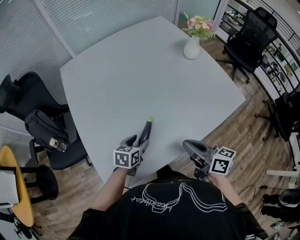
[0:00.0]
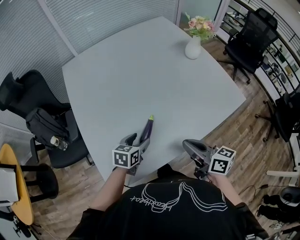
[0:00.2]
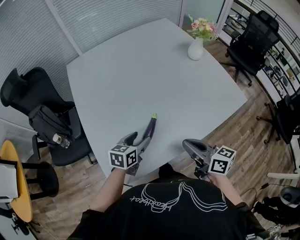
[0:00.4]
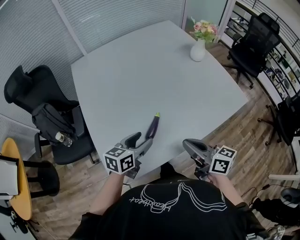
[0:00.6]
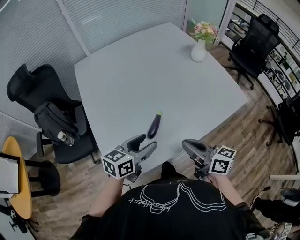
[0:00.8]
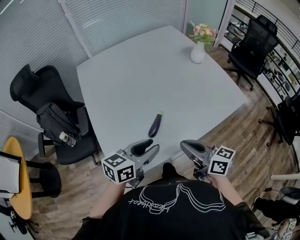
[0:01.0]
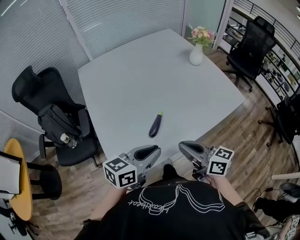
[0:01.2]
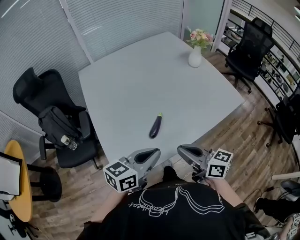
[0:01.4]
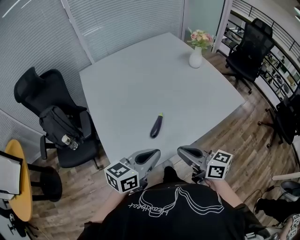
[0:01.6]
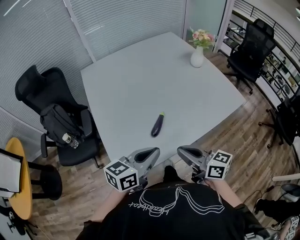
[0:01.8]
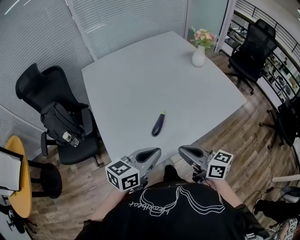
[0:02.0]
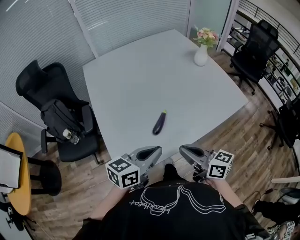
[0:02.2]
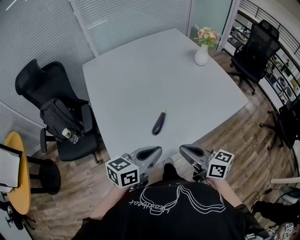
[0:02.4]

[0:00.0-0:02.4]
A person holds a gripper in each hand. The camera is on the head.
0:00.0 to 0:01.2: The right gripper goes approximately 10 cm backward, to the left and upward; the left gripper moves upward and backward, about 25 cm, swivels some 30 degrees, and closes up.
0:01.2 to 0:02.4: The grippers make only small movements.

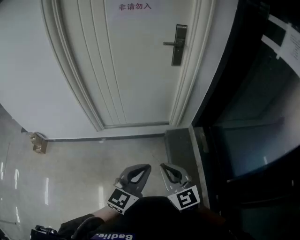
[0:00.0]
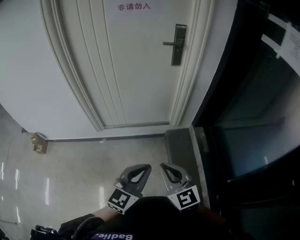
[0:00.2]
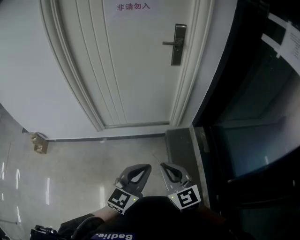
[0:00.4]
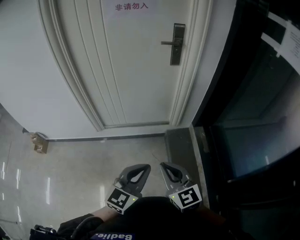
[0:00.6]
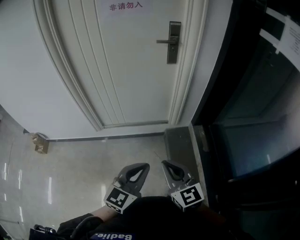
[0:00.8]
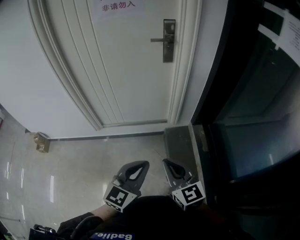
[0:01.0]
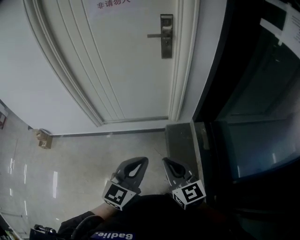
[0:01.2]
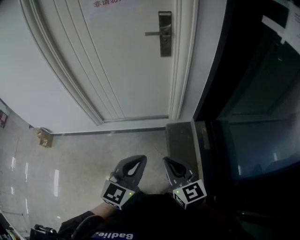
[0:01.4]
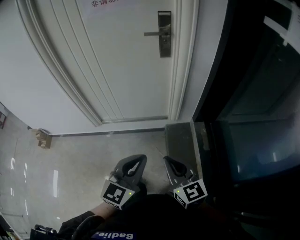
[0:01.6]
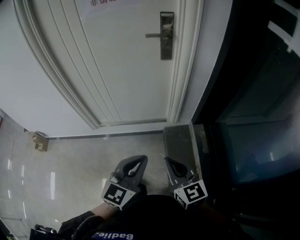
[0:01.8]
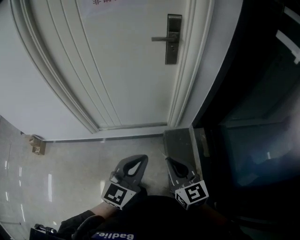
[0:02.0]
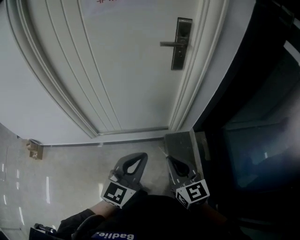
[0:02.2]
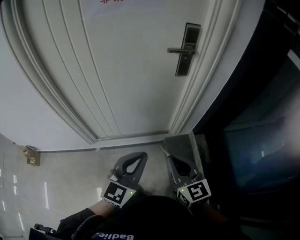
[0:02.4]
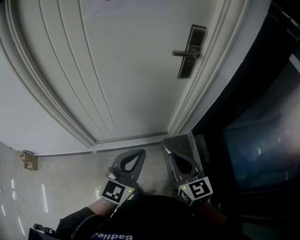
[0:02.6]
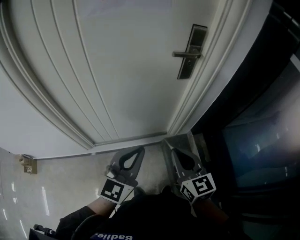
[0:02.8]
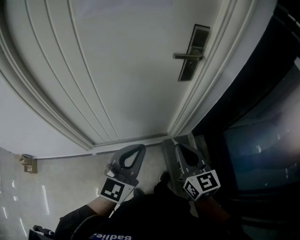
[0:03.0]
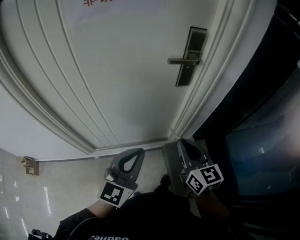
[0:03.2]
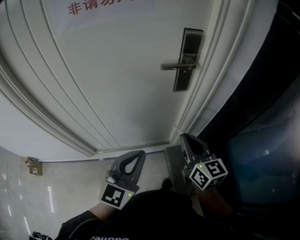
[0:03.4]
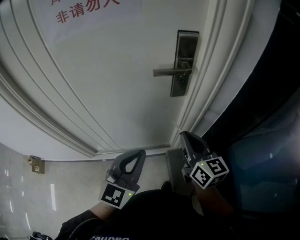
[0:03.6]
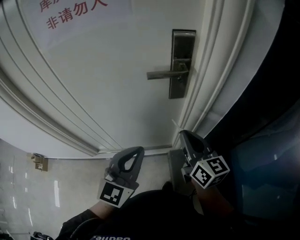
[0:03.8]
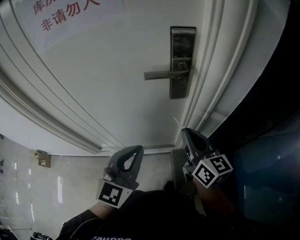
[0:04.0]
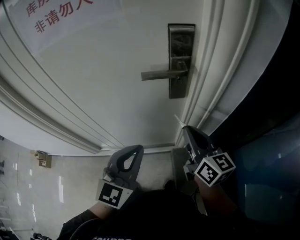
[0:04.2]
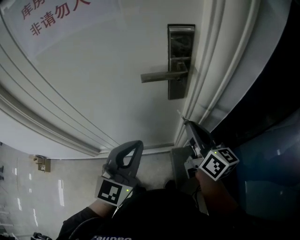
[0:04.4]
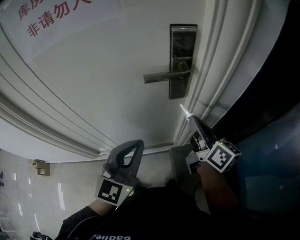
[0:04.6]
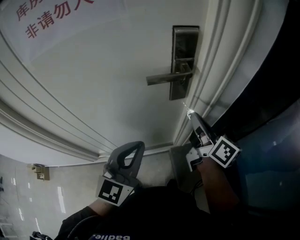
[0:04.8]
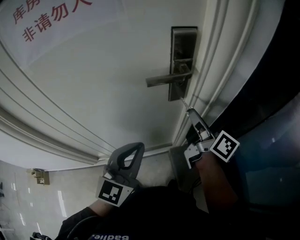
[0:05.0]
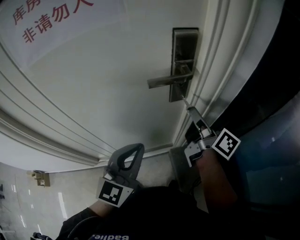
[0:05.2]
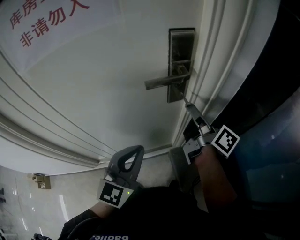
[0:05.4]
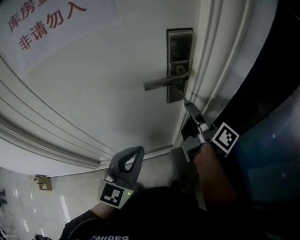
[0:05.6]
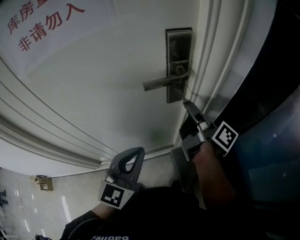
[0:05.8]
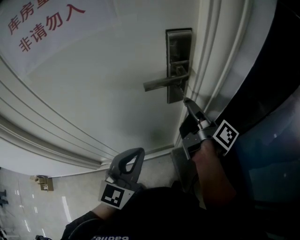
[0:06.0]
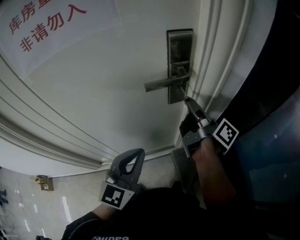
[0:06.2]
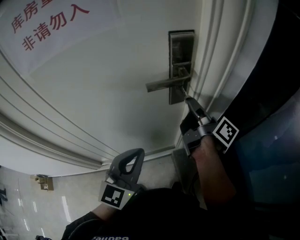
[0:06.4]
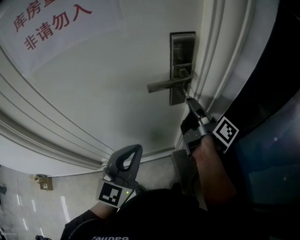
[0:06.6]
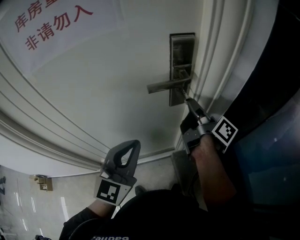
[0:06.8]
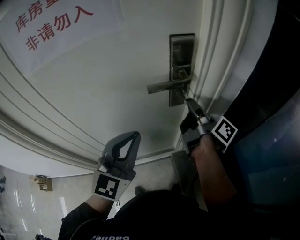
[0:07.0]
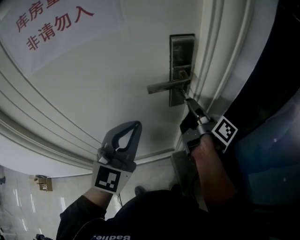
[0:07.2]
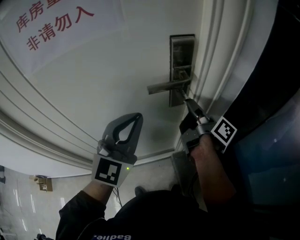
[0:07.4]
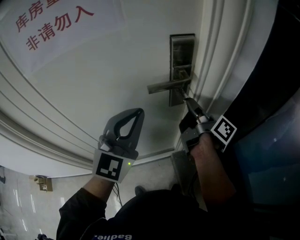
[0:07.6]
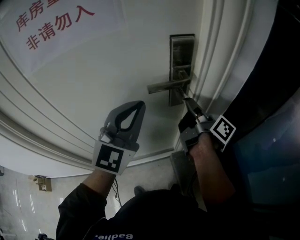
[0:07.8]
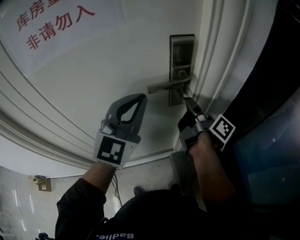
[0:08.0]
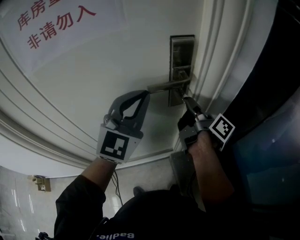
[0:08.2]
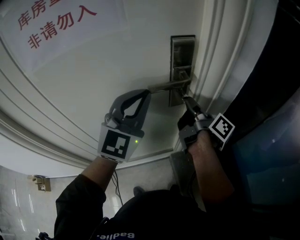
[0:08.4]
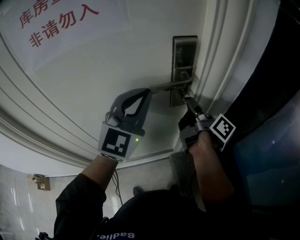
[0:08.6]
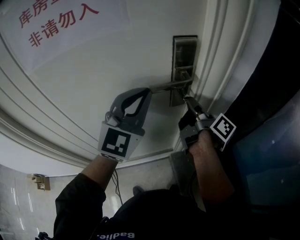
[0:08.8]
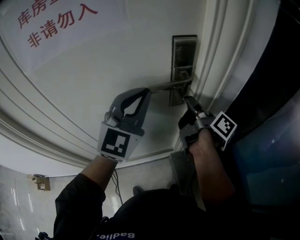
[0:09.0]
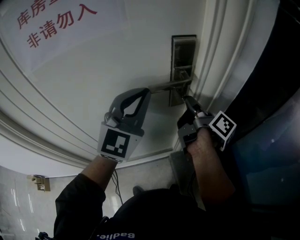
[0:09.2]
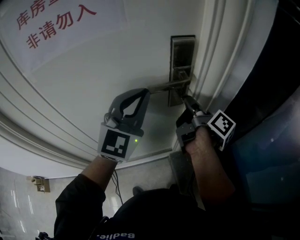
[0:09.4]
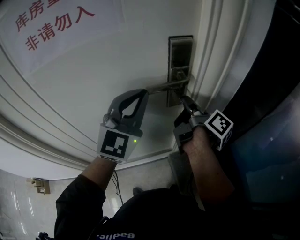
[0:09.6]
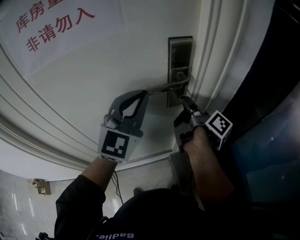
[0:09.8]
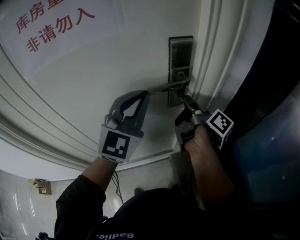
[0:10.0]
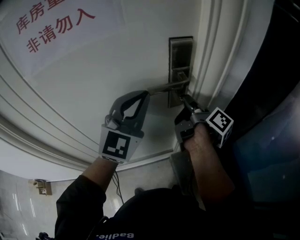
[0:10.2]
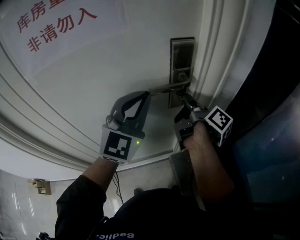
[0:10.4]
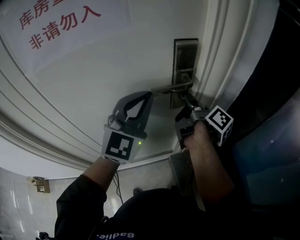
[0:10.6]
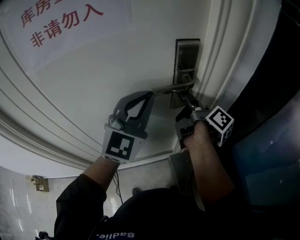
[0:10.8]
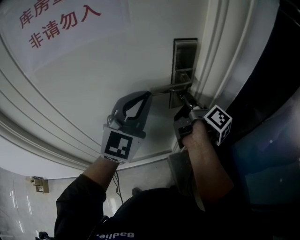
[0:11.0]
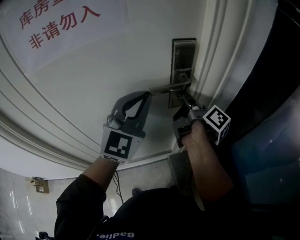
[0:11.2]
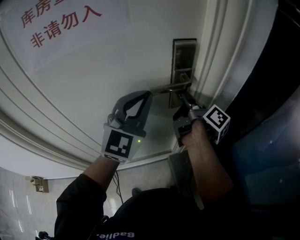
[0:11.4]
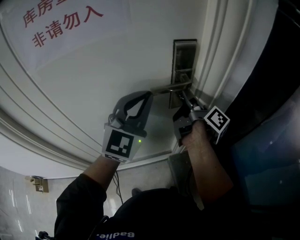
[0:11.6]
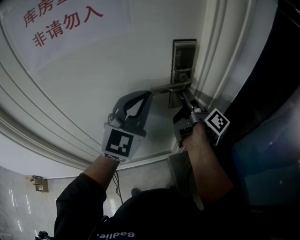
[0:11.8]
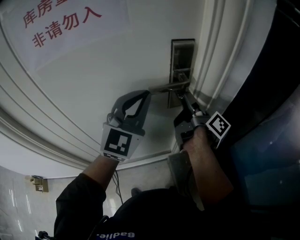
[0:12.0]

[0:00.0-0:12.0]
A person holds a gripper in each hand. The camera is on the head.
0:00.0 to 0:01.6: The grippers both shift to the right and forward by roughly 15 cm.
0:01.6 to 0:03.0: The grippers both shift forward and to the left by some 30 cm.
0:03.0 to 0:04.4: Both grippers move forward and to the right, some 20 cm. The right gripper rotates some 30 degrees.
0:04.4 to 0:06.0: The right gripper travels forward by about 5 cm, and rolls clockwise, seen from behind, by some 50 degrees.
0:06.0 to 0:07.6: The left gripper goes about 10 cm upward and forward.
0:07.6 to 0:09.0: The left gripper moves approximately 5 cm.
0:09.0 to 0:10.4: The grippers move only a little.
0:10.4 to 0:12.0: The right gripper opens its fingers.

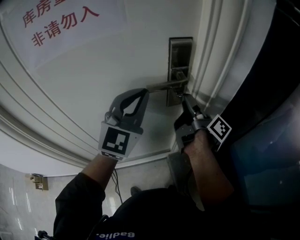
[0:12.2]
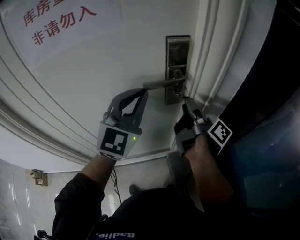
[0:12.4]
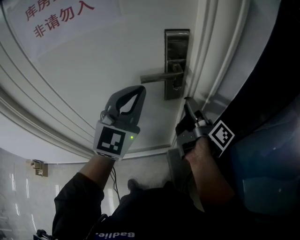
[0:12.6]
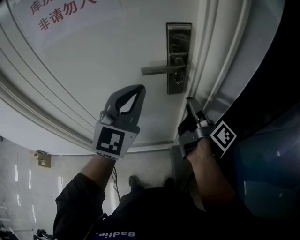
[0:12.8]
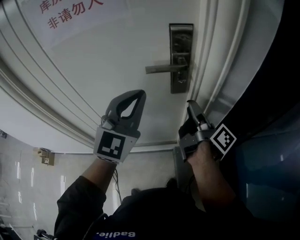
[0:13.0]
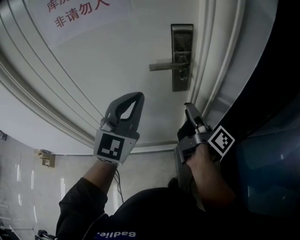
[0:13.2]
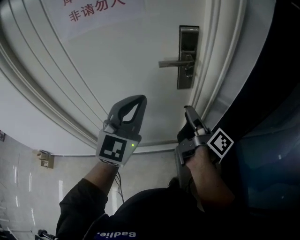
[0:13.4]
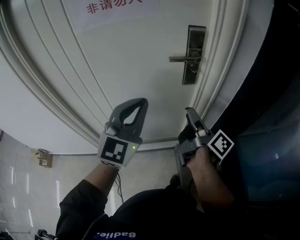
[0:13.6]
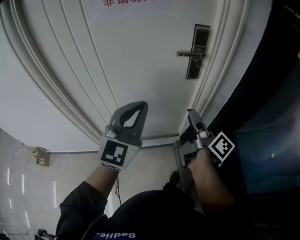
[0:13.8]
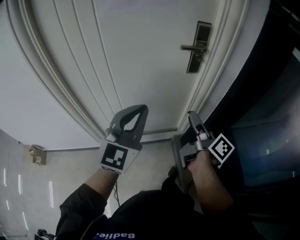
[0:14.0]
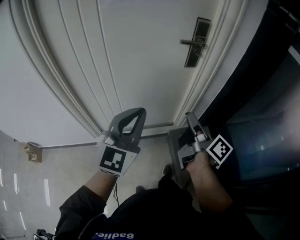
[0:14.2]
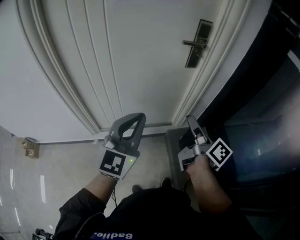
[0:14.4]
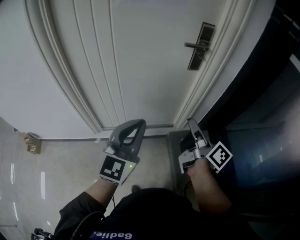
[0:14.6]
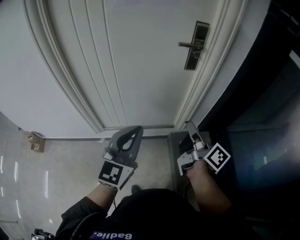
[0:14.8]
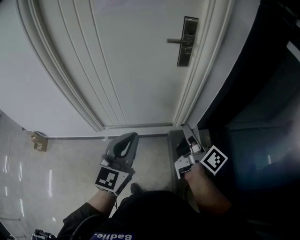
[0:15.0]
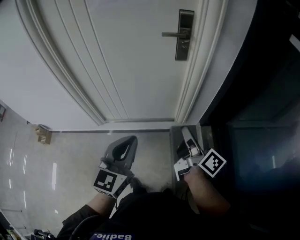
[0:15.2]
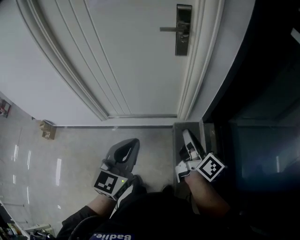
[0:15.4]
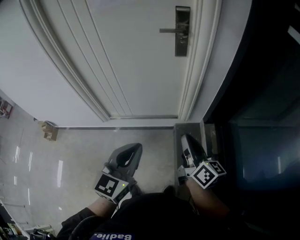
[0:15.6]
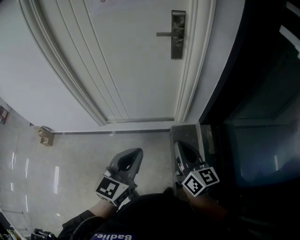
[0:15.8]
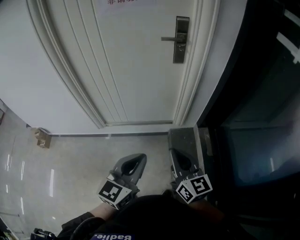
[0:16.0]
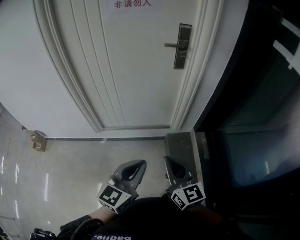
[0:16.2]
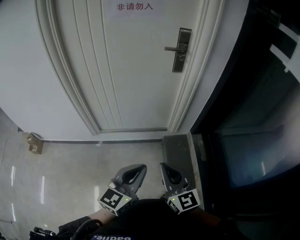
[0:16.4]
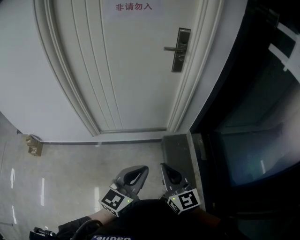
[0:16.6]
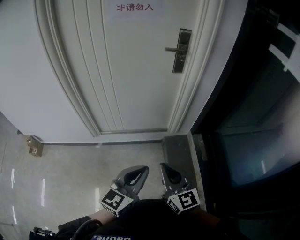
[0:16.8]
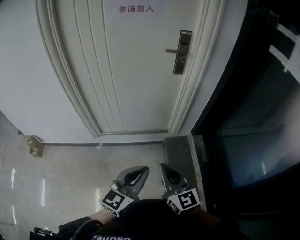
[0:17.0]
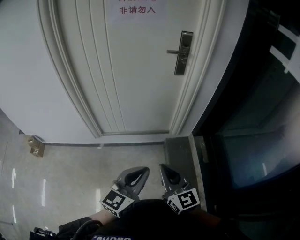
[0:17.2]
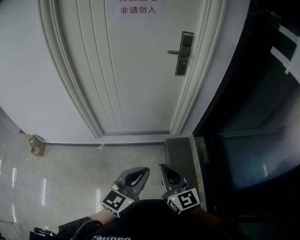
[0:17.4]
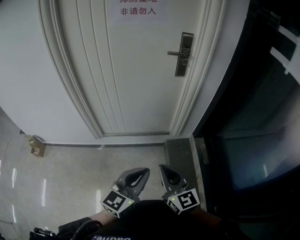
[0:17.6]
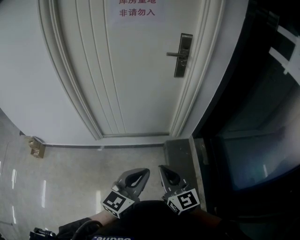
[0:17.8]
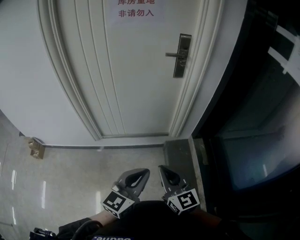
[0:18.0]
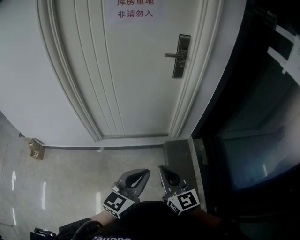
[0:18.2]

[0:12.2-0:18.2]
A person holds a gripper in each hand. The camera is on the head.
0:12.2 to 0:13.8: The grippers both shift backward by approximately 25 cm.
0:13.8 to 0:15.2: The left gripper travels backward, downward and to the right by roughly 20 cm, and rotates about 20 degrees. The right gripper travels backward and to the right by approximately 15 cm, and closes up.
0:15.2 to 0:16.6: The right gripper moves backward and to the left, about 20 cm, and rolls counterclockwise, seen from behind, by approximately 60 degrees. The left gripper moves backward, approximately 10 cm.
0:16.6 to 0:18.2: The grippers move only a little.

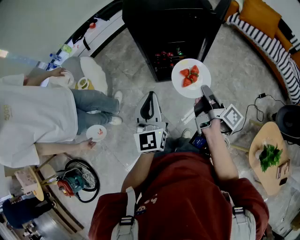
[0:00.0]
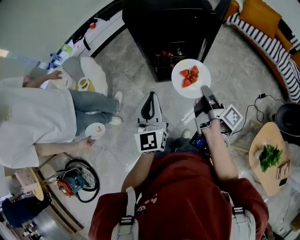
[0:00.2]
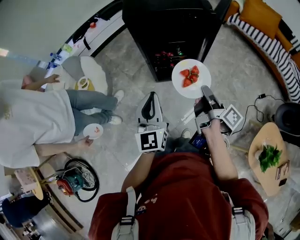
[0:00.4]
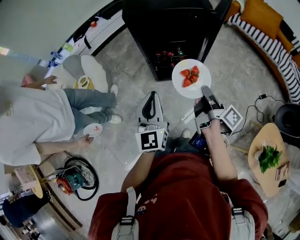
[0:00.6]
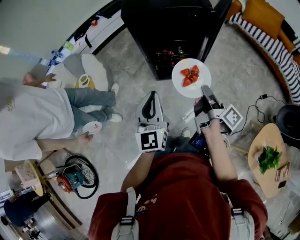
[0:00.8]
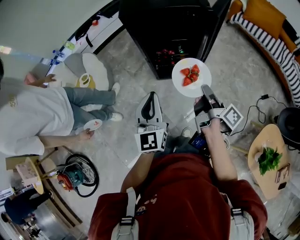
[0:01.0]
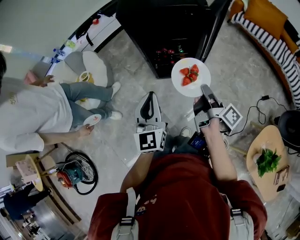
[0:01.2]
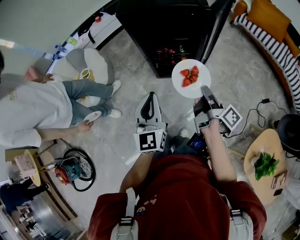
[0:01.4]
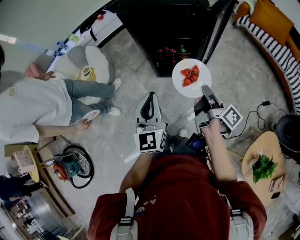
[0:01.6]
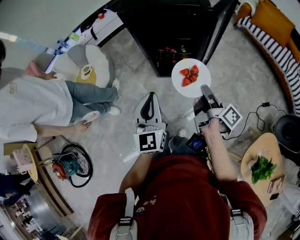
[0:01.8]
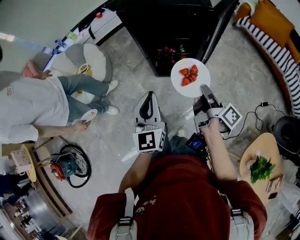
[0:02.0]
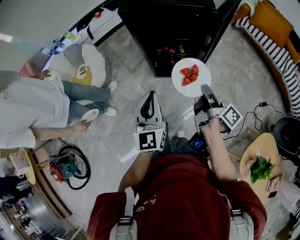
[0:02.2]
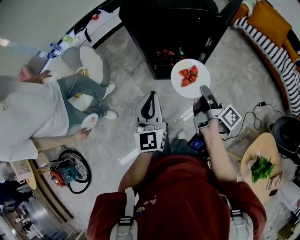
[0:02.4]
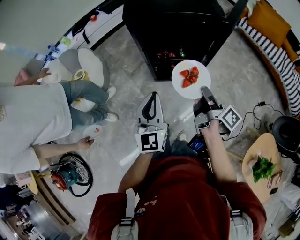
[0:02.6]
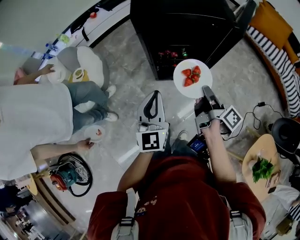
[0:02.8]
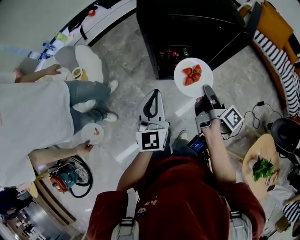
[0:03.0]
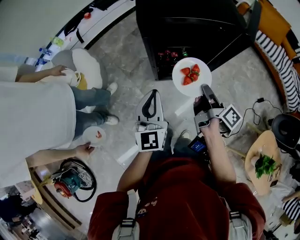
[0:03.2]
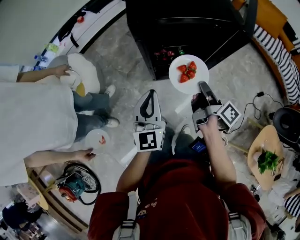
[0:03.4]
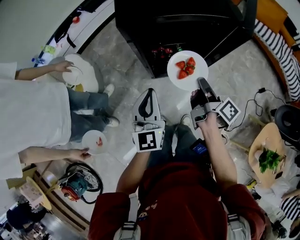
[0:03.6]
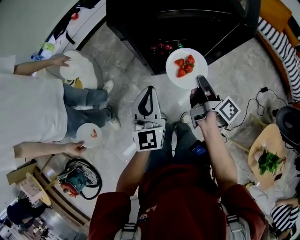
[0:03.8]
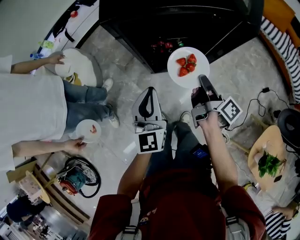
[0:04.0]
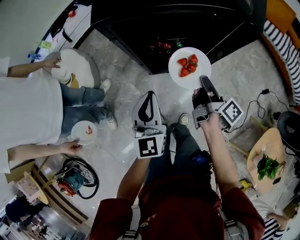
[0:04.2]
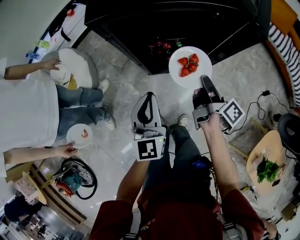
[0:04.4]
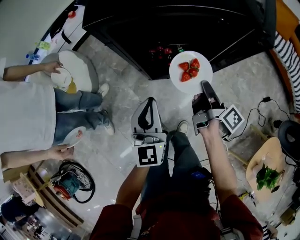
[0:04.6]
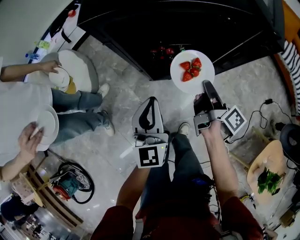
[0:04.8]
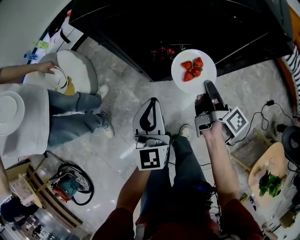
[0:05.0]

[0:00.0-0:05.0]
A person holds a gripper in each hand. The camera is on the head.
0:00.0 to 0:01.6: The two grippers go some 5 cm to the right.
0:01.6 to 0:03.4: Both grippers move forward and to the left, roughly 15 cm.
0:03.4 to 0:05.0: The left gripper heads downward and to the right, covering about 10 cm. The right gripper goes about 15 cm downward, forward and to the right.
